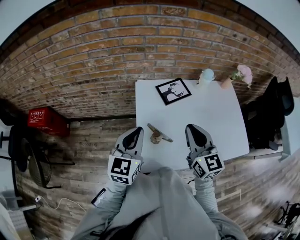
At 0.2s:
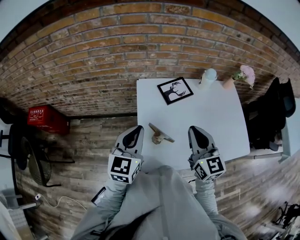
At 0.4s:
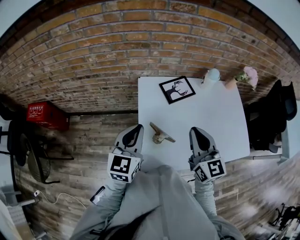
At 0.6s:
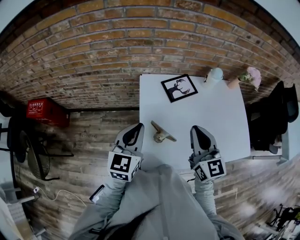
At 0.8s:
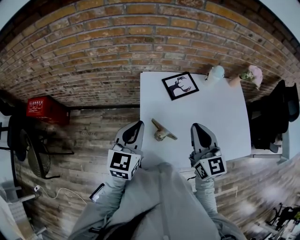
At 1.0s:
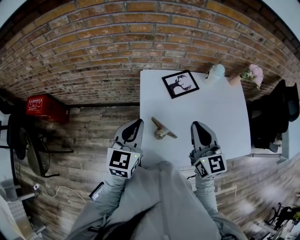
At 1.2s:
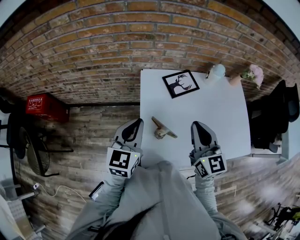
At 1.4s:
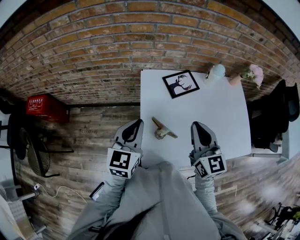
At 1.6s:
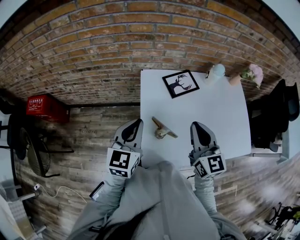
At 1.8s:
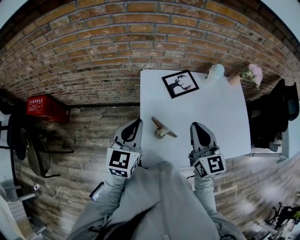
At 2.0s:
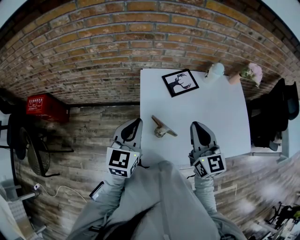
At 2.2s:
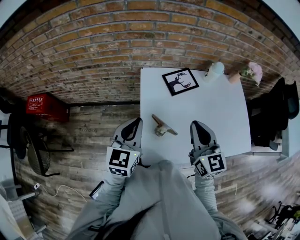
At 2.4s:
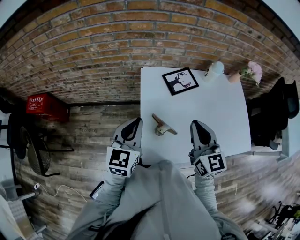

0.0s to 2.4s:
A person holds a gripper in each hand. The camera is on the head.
0.0s to 1.2s: The grippers make only small movements.
1.2s to 2.4s: Neither gripper changes place.

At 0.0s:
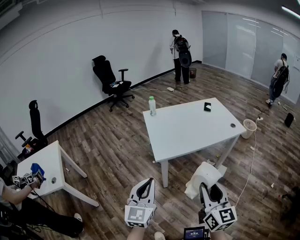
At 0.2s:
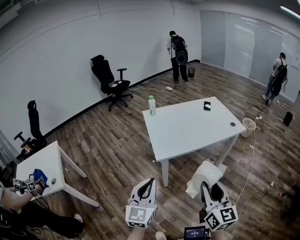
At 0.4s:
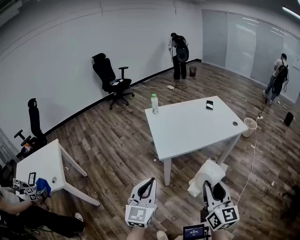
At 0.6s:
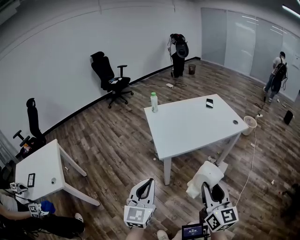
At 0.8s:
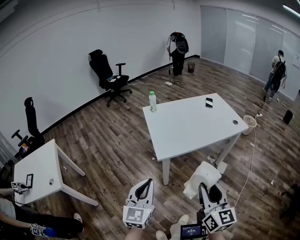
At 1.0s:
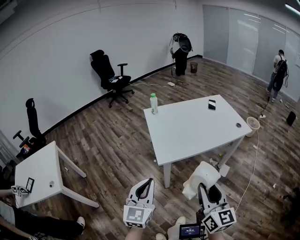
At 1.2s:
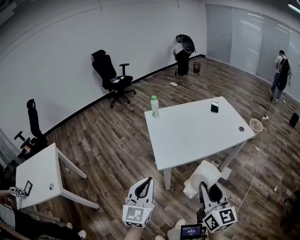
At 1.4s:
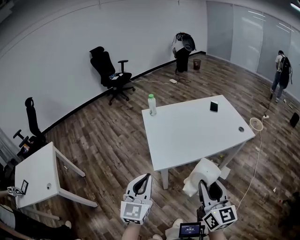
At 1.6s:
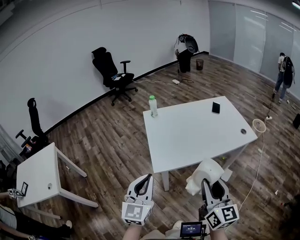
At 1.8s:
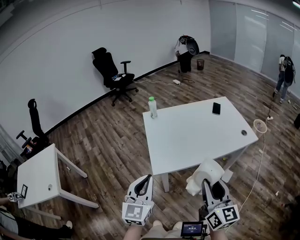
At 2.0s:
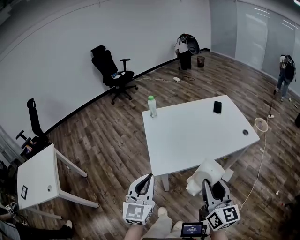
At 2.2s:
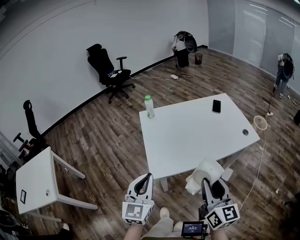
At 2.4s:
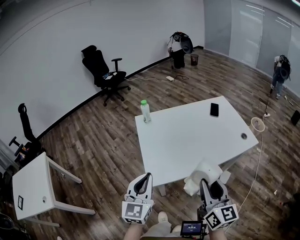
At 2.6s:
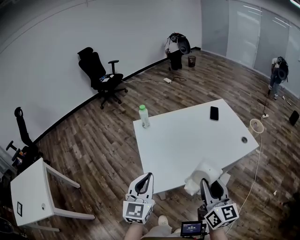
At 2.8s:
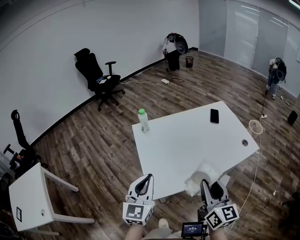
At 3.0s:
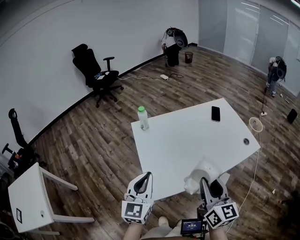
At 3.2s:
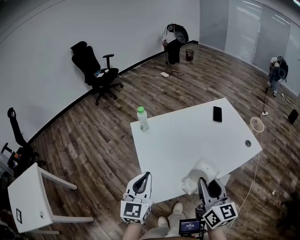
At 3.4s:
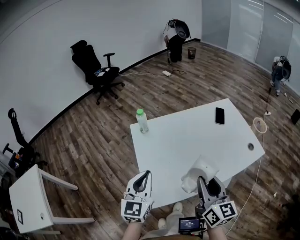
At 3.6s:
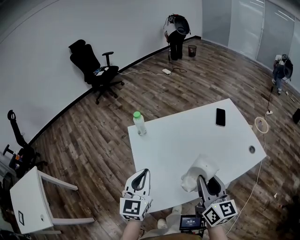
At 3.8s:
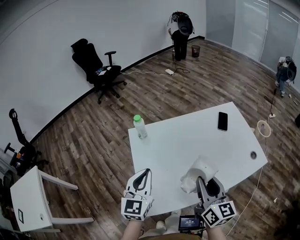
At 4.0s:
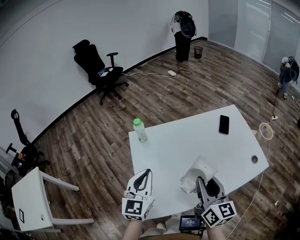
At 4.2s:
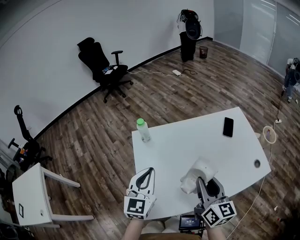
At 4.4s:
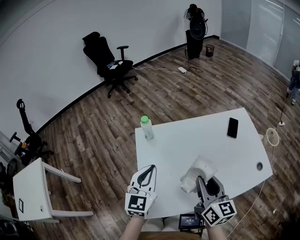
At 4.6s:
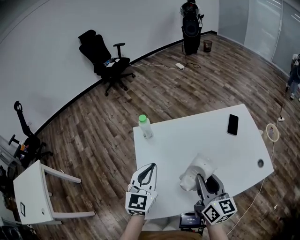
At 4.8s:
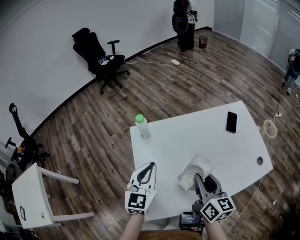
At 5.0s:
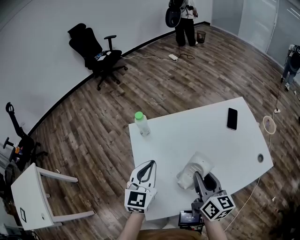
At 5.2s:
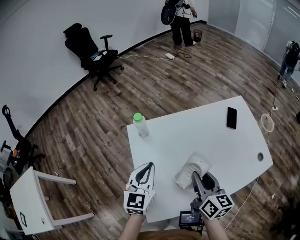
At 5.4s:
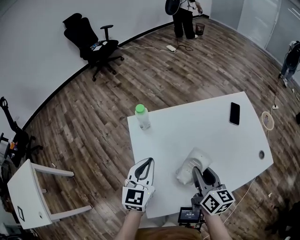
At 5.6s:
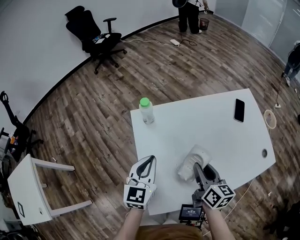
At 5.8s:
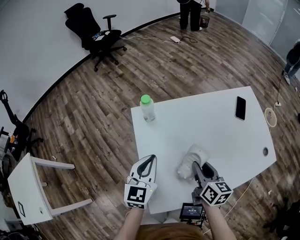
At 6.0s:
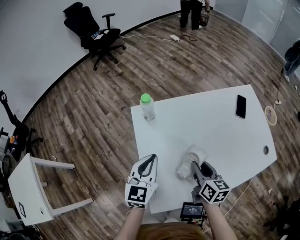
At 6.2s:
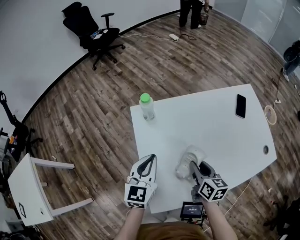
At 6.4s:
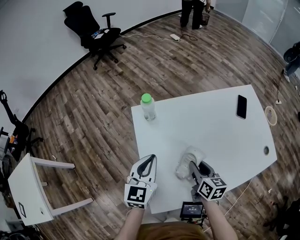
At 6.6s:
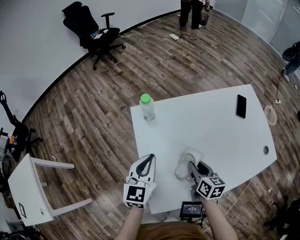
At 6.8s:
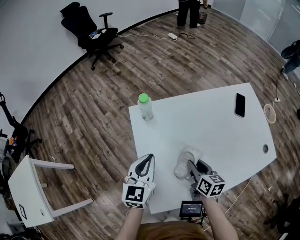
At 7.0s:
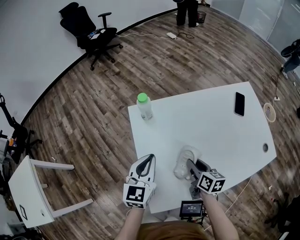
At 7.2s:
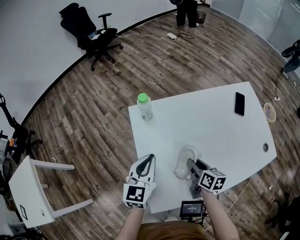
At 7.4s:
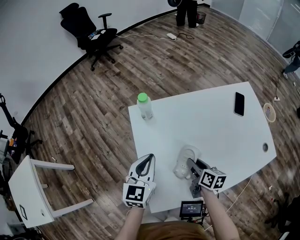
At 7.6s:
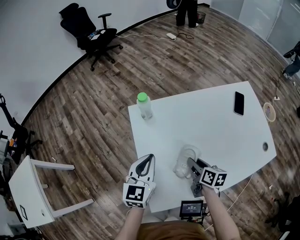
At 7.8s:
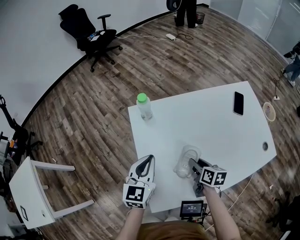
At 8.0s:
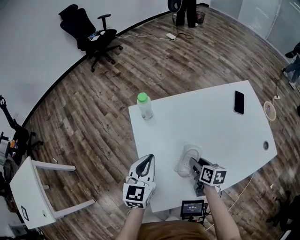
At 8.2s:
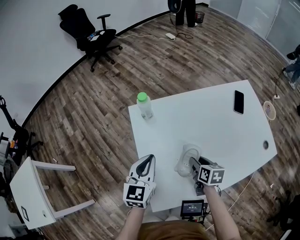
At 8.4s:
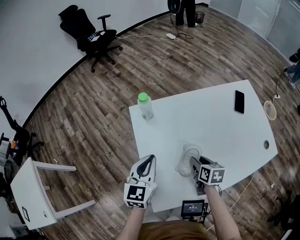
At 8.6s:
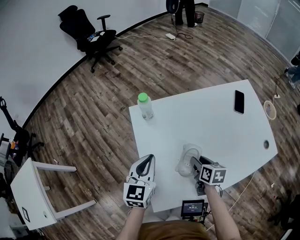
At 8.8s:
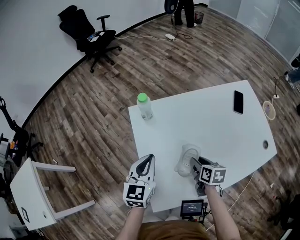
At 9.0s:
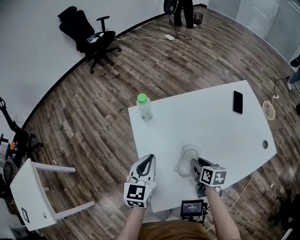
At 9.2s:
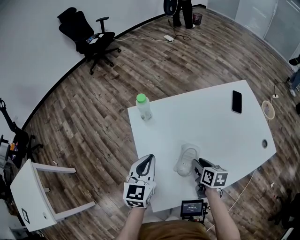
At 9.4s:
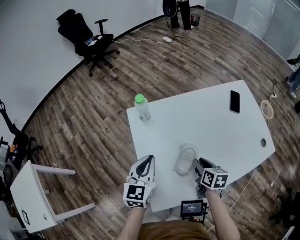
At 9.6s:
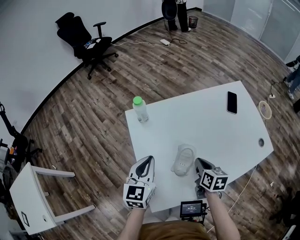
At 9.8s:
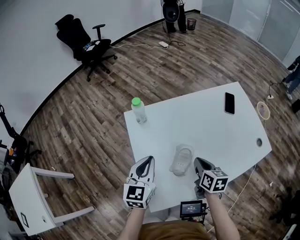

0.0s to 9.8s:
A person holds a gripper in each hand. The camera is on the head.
0.0s to 1.4s: The grippers both shift forward by some 15 cm.
1.4s to 2.8s: Both grippers move forward, about 20 cm.
2.8s to 4.2s: Both grippers travel together forward, approximately 20 cm.
4.2s to 5.6s: The left gripper moves downward, to the left and forward, some 10 cm; the right gripper goes some 15 cm downward, forward and to the left.
5.6s to 7.0s: The right gripper travels downward by roughly 10 cm.
7.0s to 8.4s: The grippers move only a little.
8.4s to 9.8s: The right gripper travels upward by roughly 5 cm, and closes.

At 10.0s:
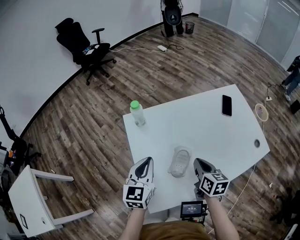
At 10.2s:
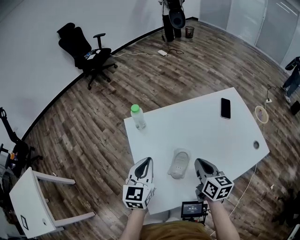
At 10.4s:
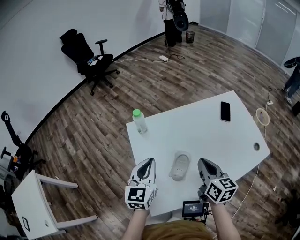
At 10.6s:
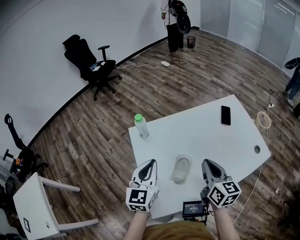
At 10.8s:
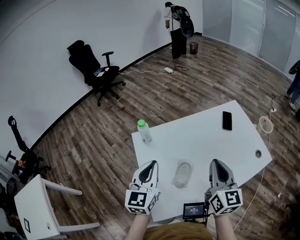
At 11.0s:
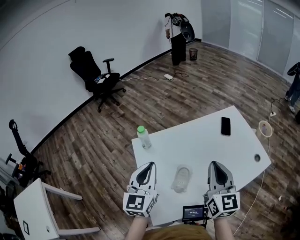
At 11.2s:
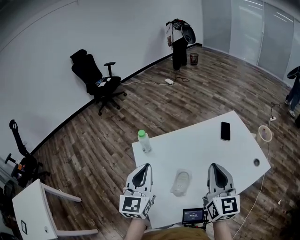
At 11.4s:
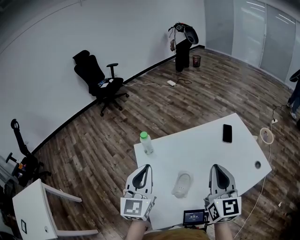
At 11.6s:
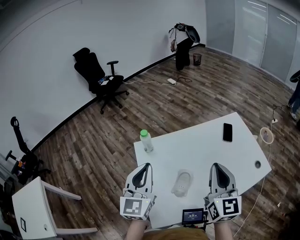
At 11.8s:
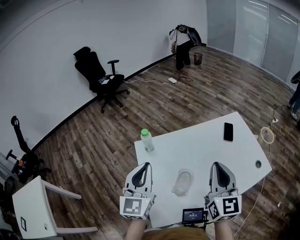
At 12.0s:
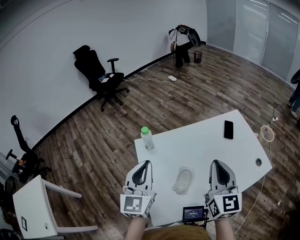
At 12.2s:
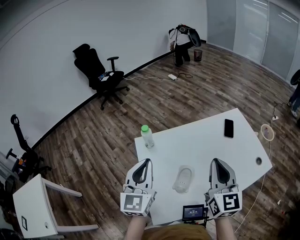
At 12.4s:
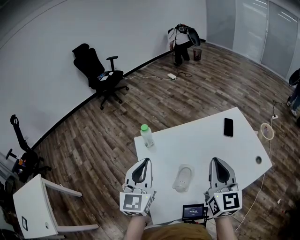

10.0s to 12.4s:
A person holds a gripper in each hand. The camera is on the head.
10.0s to 11.2s: The right gripper heads upward, covering approximately 25 cm, and tilts its fingers some 30 degrees upward. Meanwhile the left gripper moves upward, some 15 cm.
11.2s to 12.4s: The grippers make only small movements.

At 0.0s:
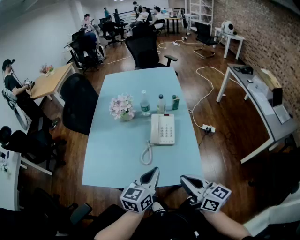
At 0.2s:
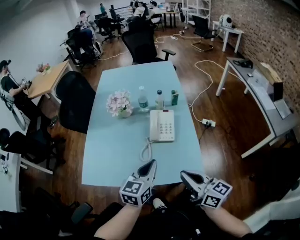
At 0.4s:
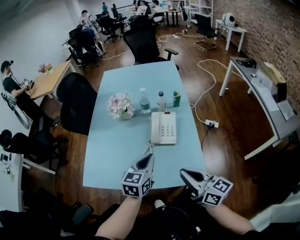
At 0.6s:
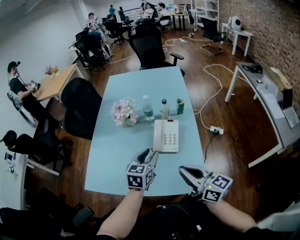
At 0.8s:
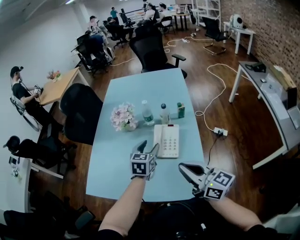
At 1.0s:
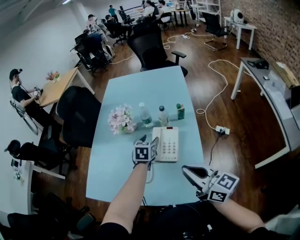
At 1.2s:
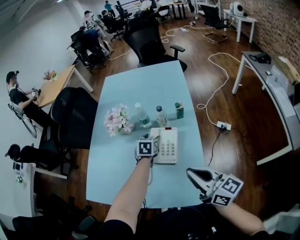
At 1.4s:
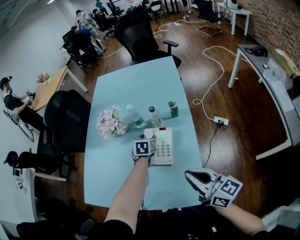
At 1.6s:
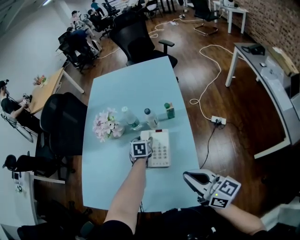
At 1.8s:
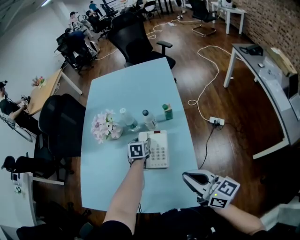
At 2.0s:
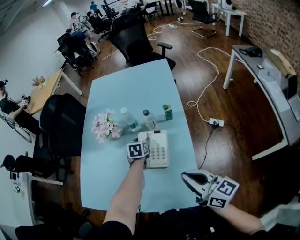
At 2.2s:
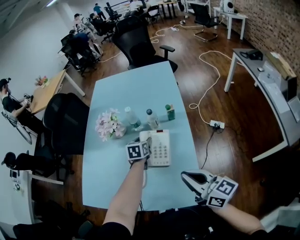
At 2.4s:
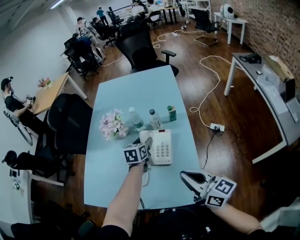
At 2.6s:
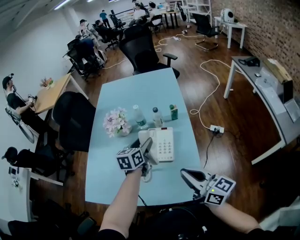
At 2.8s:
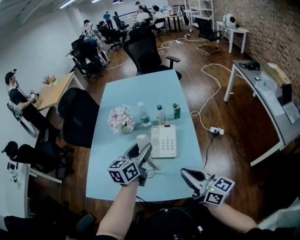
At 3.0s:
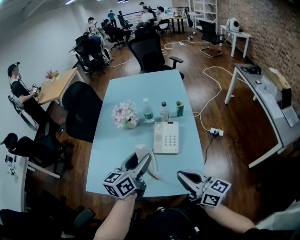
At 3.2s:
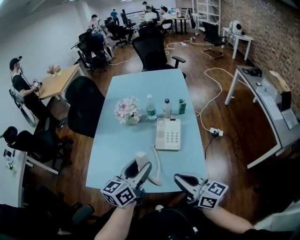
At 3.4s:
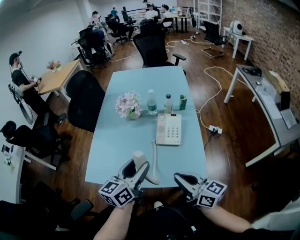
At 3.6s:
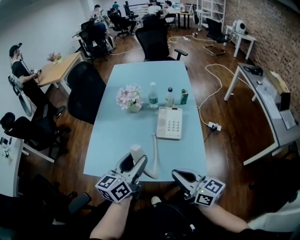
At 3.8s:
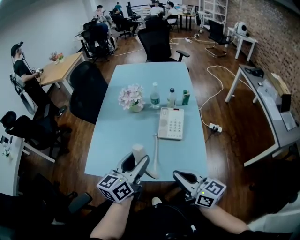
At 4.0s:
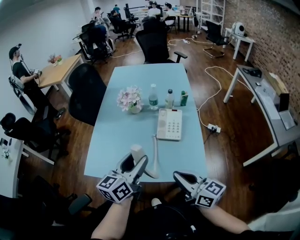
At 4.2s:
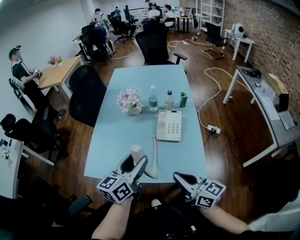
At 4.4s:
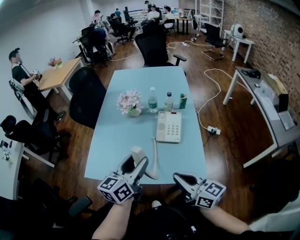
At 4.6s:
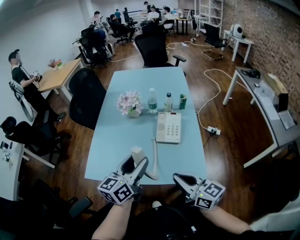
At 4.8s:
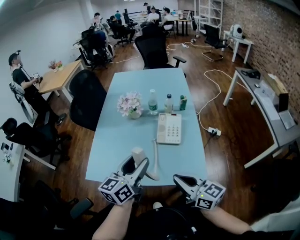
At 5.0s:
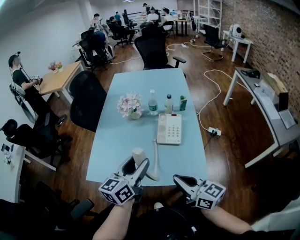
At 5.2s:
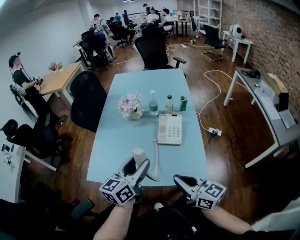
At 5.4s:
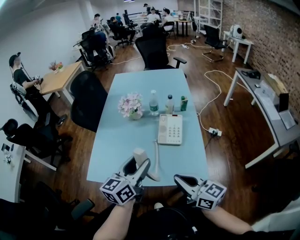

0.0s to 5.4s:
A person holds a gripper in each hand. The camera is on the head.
0.0s to 1.4s: The right gripper goes about 20 cm forward and to the right. Meanwhile the left gripper goes about 40 cm forward and downward, tips its fingers downward by about 30 degrees, and opens.
1.4s to 2.8s: The right gripper moves to the left and backward, some 10 cm, while the left gripper shifts about 30 cm upward and backward, and tilts its fingers some 40 degrees upward.
2.8s to 4.0s: The left gripper travels backward and to the left by roughly 20 cm, while the right gripper heads to the left and backward, covering approximately 15 cm.
4.0s to 5.4s: The two grippers keep their place.

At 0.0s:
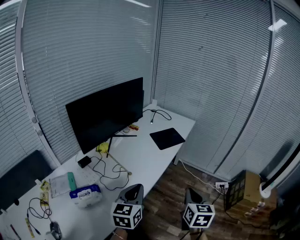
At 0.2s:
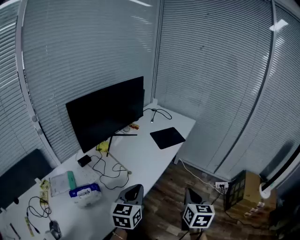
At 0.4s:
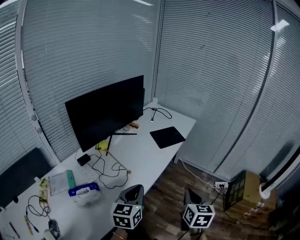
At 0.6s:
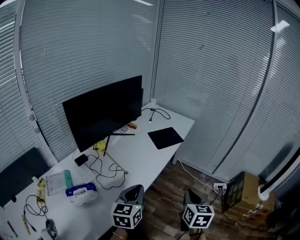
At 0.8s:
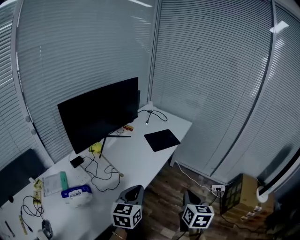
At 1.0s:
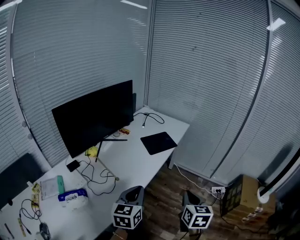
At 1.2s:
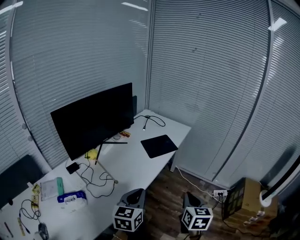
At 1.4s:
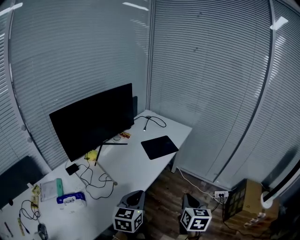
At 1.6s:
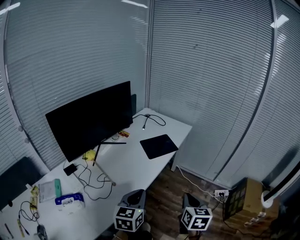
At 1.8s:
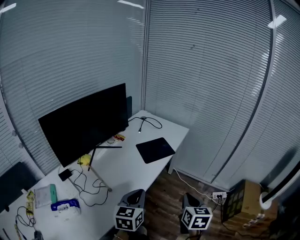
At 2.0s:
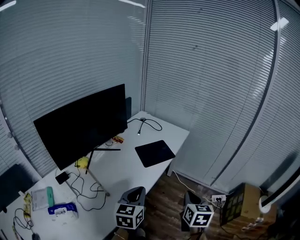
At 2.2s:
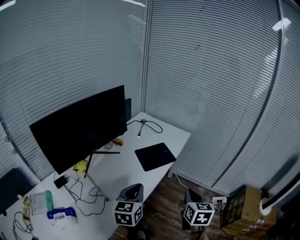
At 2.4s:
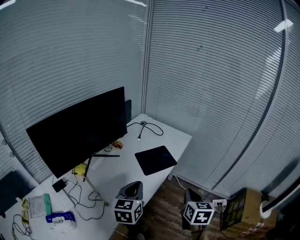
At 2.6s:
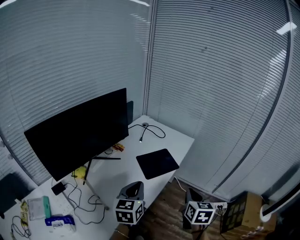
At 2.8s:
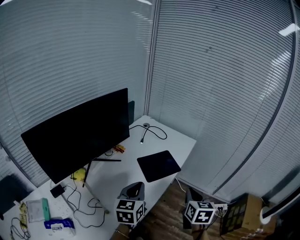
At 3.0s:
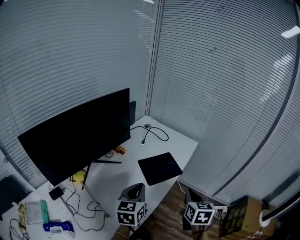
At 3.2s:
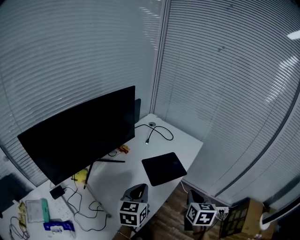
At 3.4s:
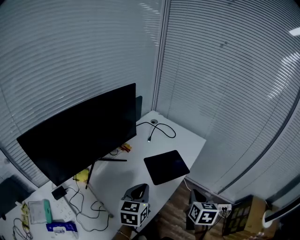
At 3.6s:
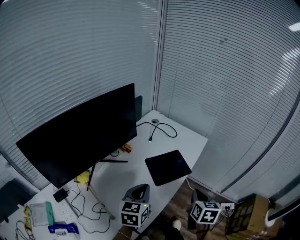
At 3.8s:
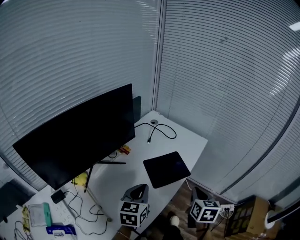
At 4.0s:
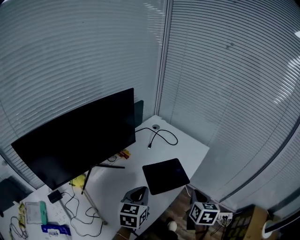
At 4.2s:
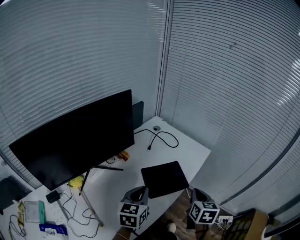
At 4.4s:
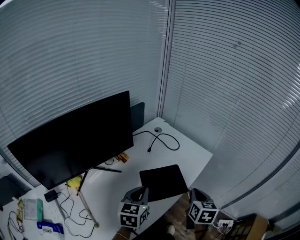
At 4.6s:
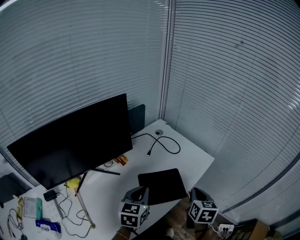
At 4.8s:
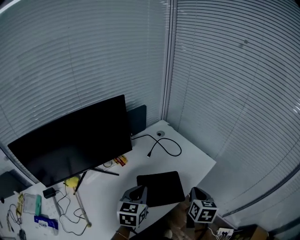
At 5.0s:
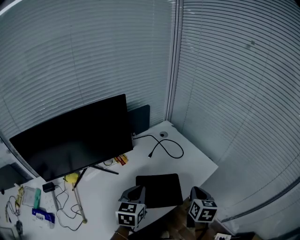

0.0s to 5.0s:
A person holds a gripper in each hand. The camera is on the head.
0.0s to 1.6s: The two grippers go some 10 cm forward and to the right.
1.6s to 3.4s: The grippers both shift forward by roughly 25 cm.
3.4s to 5.0s: The left gripper is displaced forward by about 15 cm. Meanwhile the right gripper goes about 20 cm forward.
